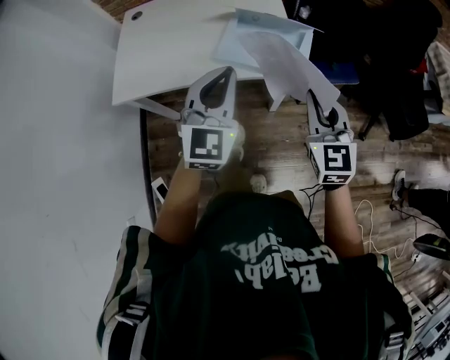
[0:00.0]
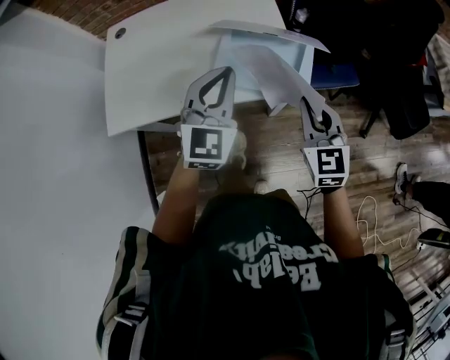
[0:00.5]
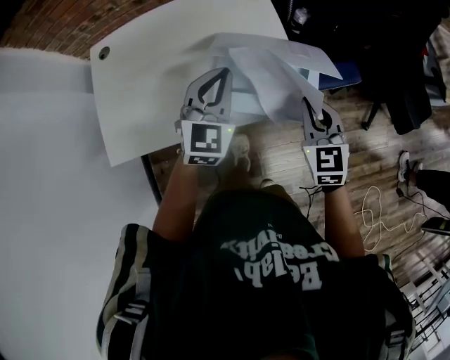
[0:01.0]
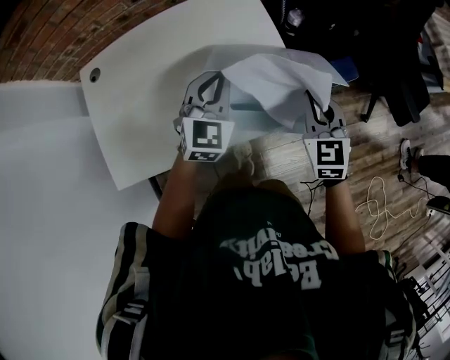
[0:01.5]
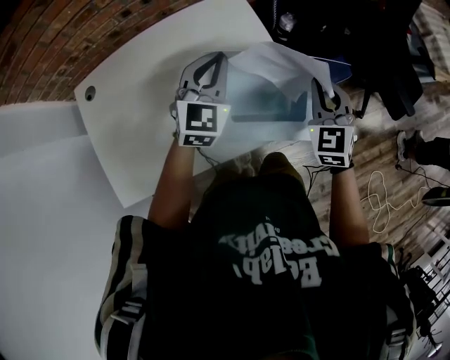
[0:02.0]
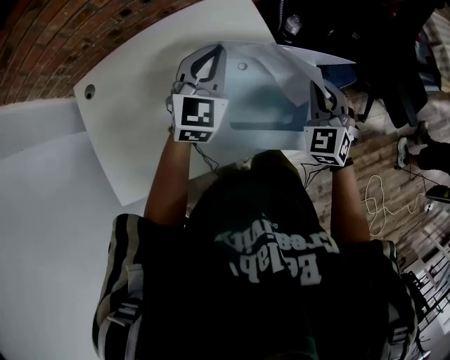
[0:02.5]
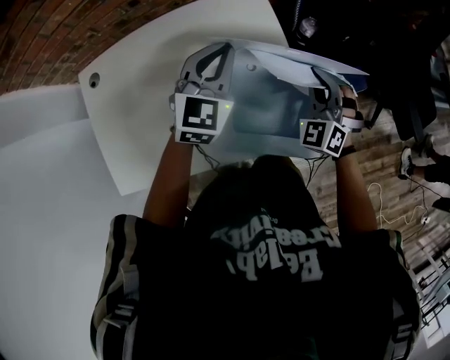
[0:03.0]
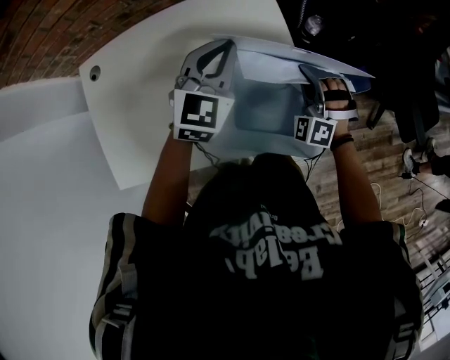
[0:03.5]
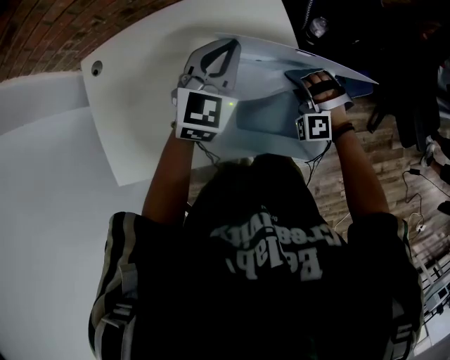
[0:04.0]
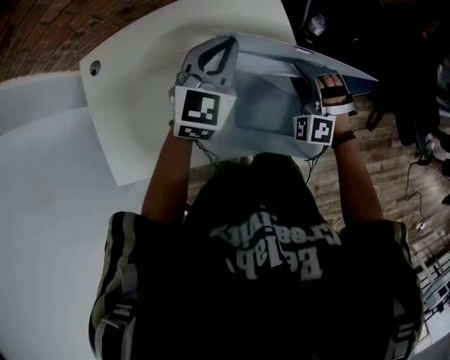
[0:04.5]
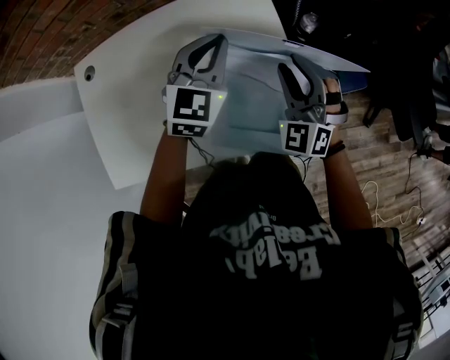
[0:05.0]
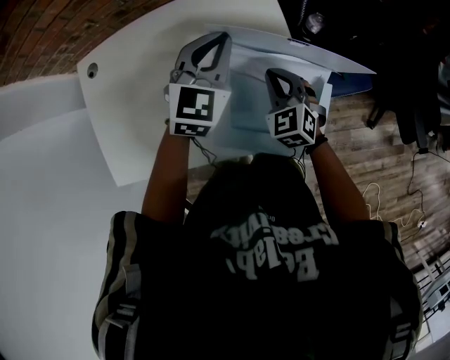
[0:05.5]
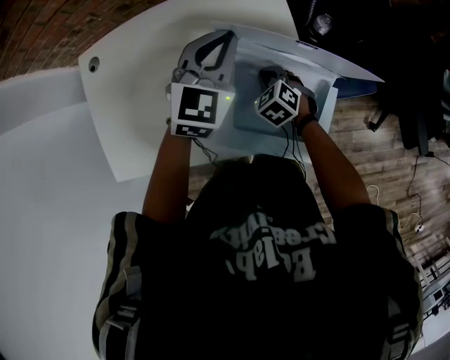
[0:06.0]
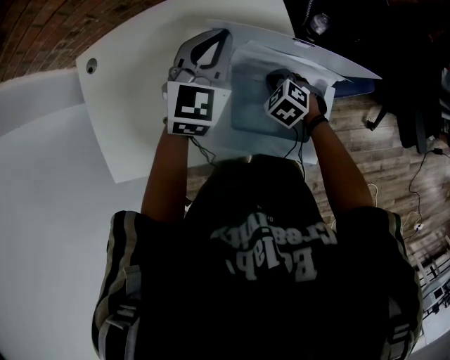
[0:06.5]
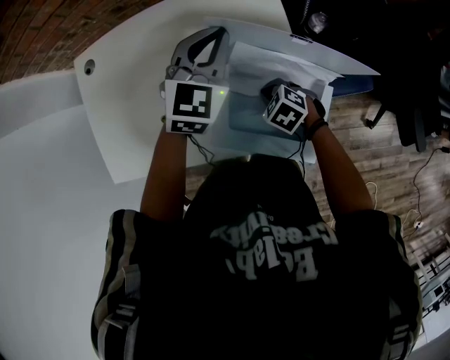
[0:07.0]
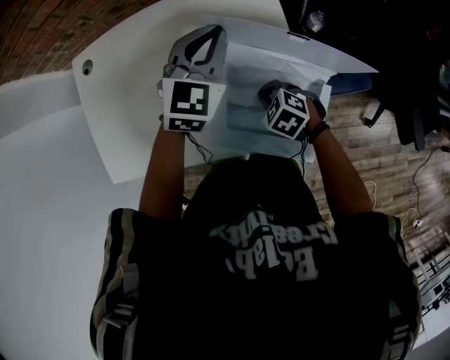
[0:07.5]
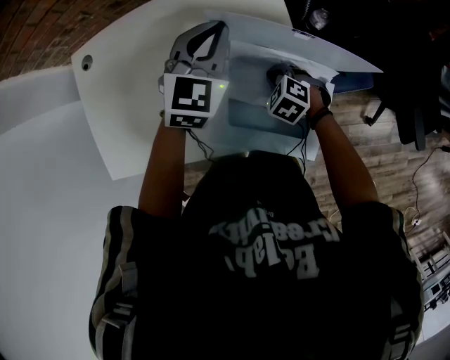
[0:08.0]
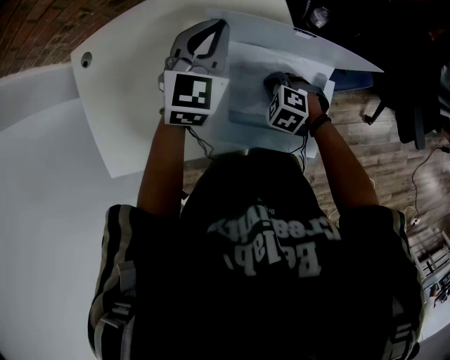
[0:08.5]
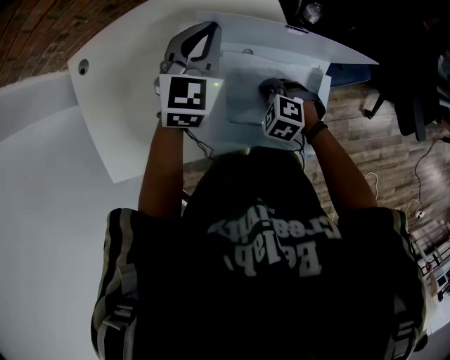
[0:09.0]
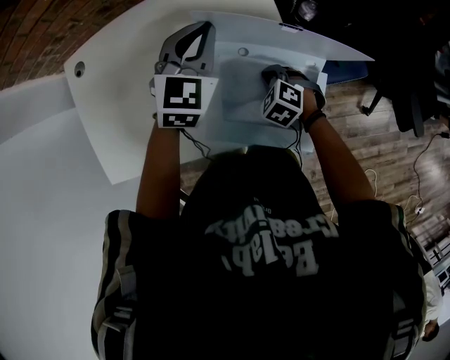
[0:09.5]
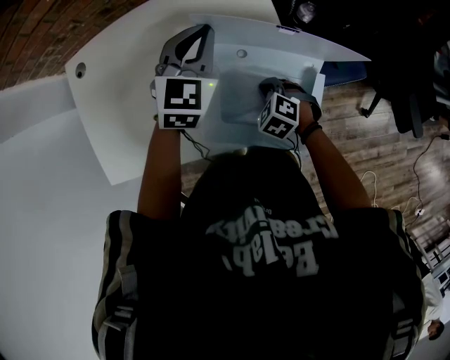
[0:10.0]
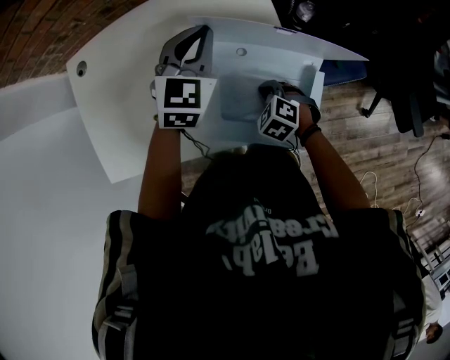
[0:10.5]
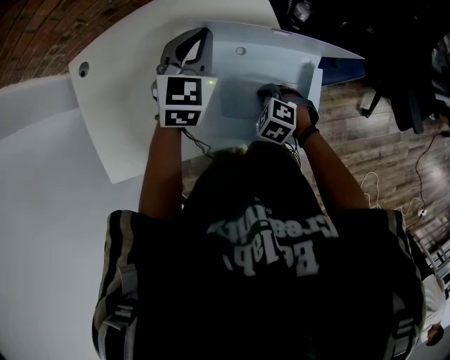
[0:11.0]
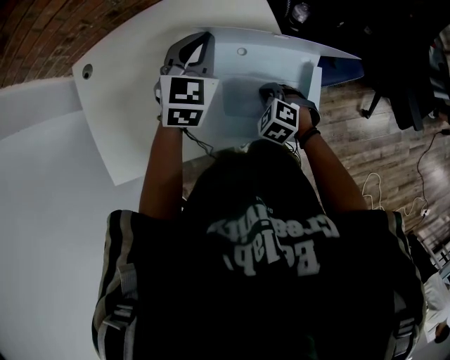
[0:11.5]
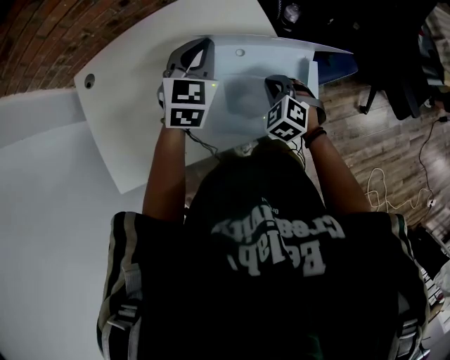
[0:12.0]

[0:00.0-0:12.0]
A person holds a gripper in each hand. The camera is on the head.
0:00.0 to 0:02.0: The two grippers go roughly 30 cm forward. The left gripper turns by roughly 20 degrees. Meanwhile the right gripper swivels roughly 30 degrees.
0:02.0 to 0:04.0: The right gripper is displaced downward and to the left by some 15 cm, and rotates around the line of its fingers by some 60 degrees, counterclockwise from behind.
0:04.0 to 0:06.0: The right gripper travels to the left by roughly 5 cm, travels upward and back again, approximately 15 cm each way, rotates around the line of its fingers by approximately 50 degrees, clockwise from behind, and opens and closes again.
0:10.0 to 0:12.0: The right gripper heads upward, covering roughly 5 cm.

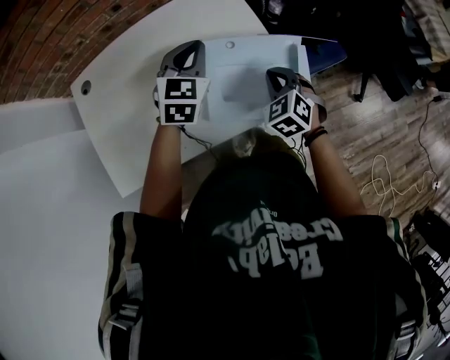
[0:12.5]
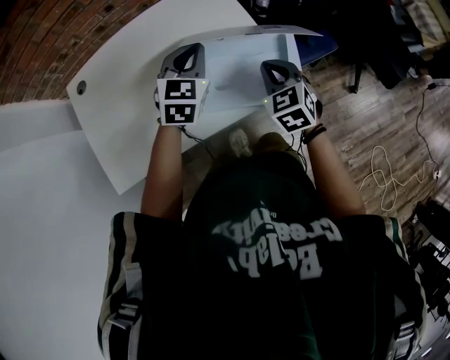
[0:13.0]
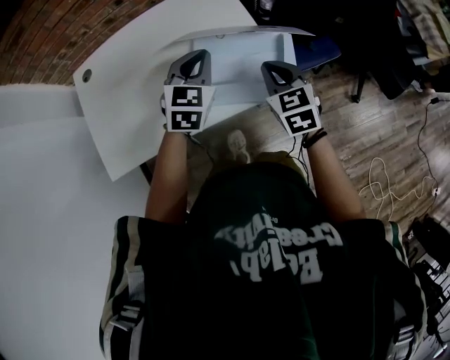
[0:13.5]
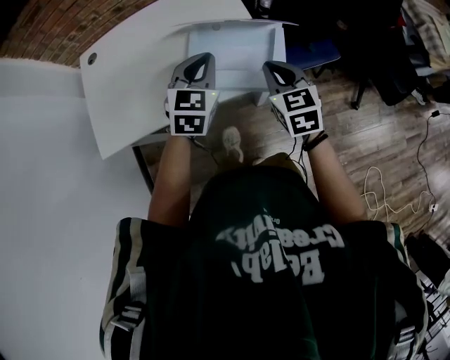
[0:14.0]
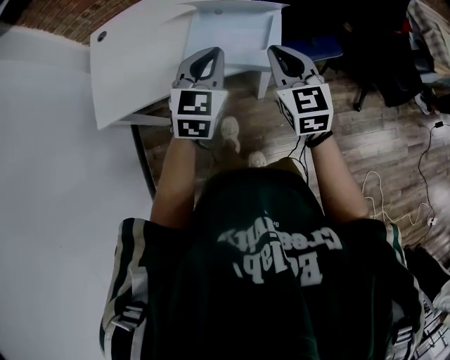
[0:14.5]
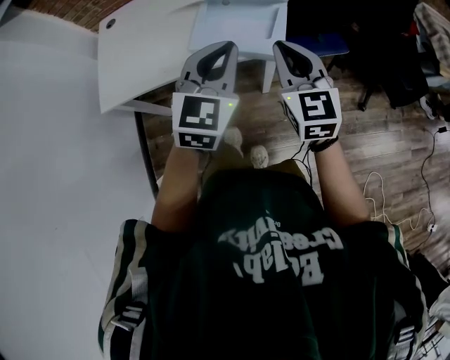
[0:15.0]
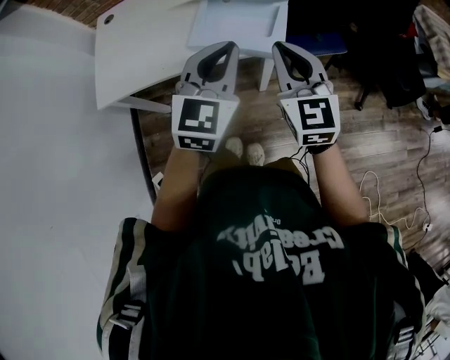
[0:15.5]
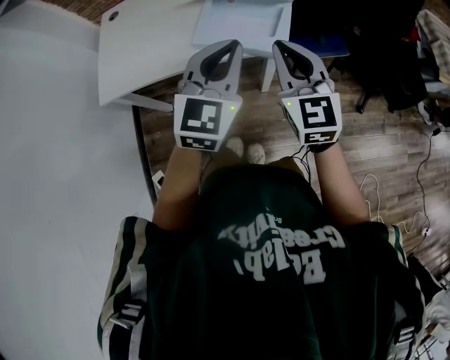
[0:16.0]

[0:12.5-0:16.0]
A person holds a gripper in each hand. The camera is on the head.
0:12.5 to 0:14.5: The left gripper is displaced backward and to the right by approximately 25 cm. The right gripper travels backward, upward and to the right by about 25 cm, and angles its fingers upward, by about 30 degrees.
0:14.5 to 0:16.0: The left gripper goes about 10 cm backward and upward; the right gripper is displaced backward by approximately 5 cm.

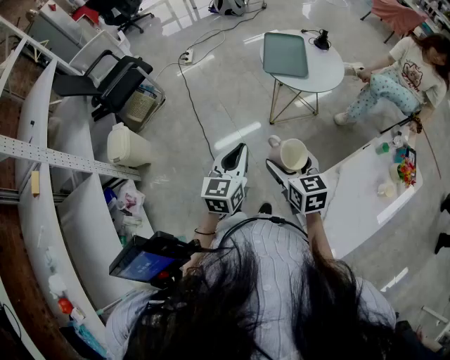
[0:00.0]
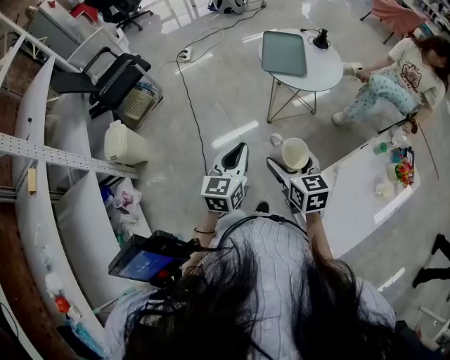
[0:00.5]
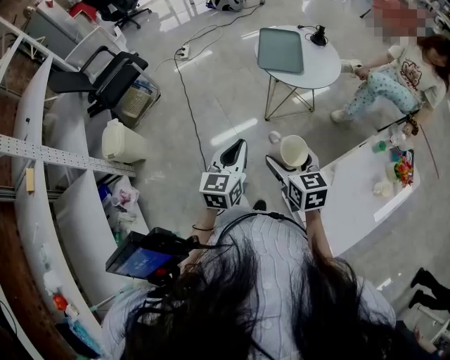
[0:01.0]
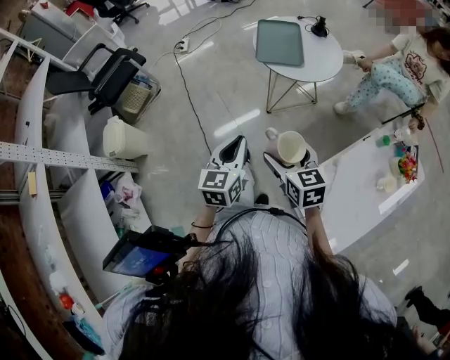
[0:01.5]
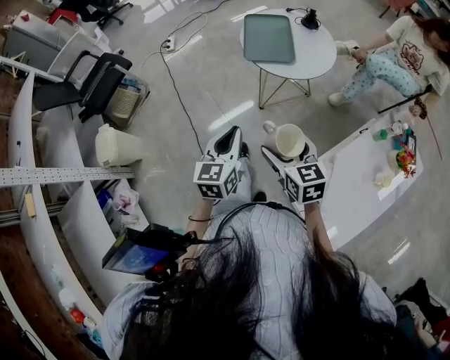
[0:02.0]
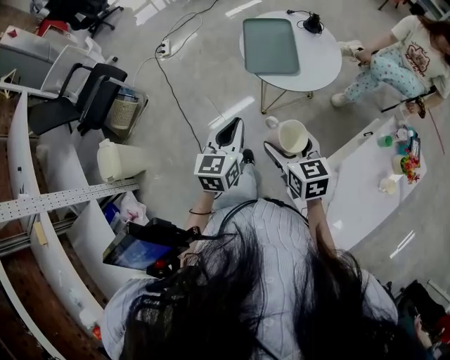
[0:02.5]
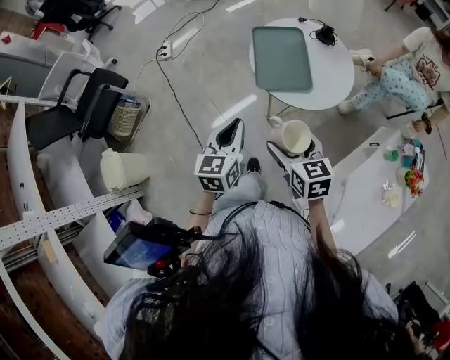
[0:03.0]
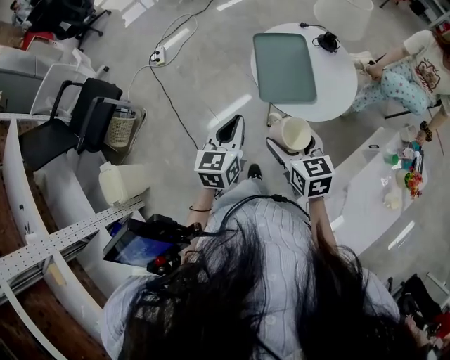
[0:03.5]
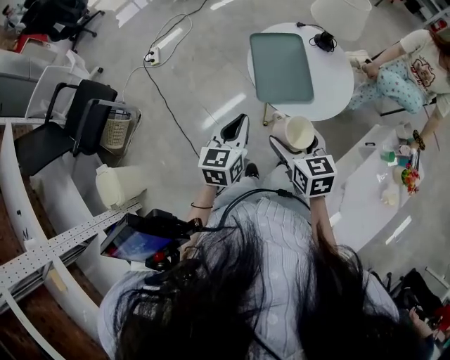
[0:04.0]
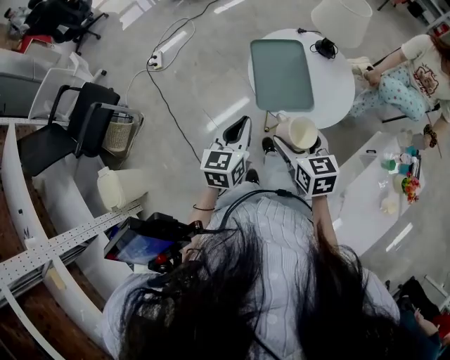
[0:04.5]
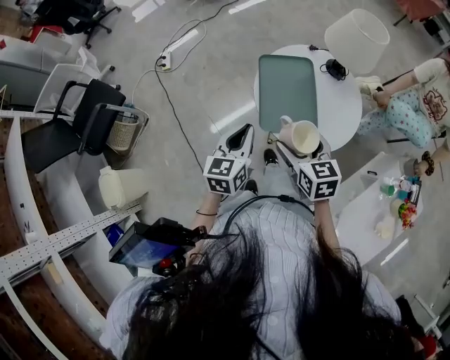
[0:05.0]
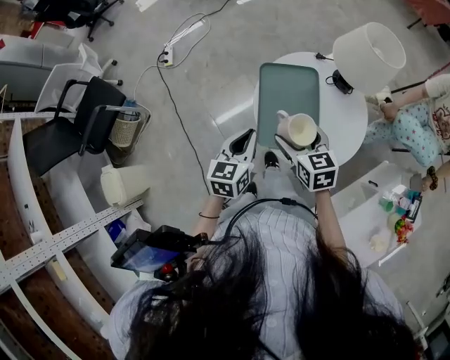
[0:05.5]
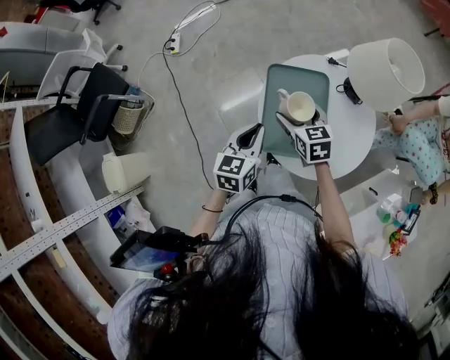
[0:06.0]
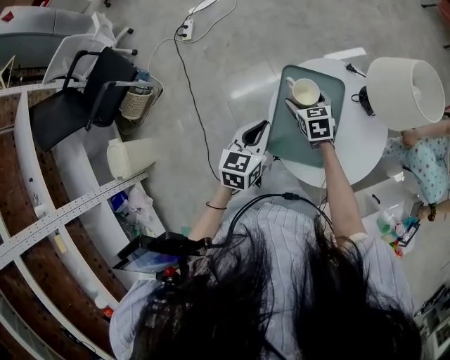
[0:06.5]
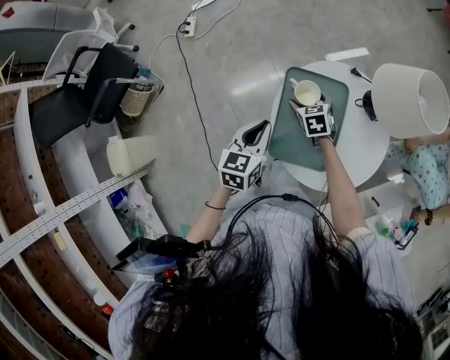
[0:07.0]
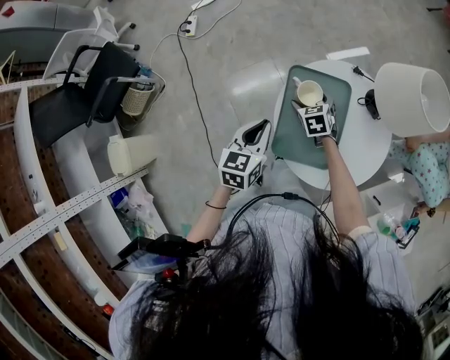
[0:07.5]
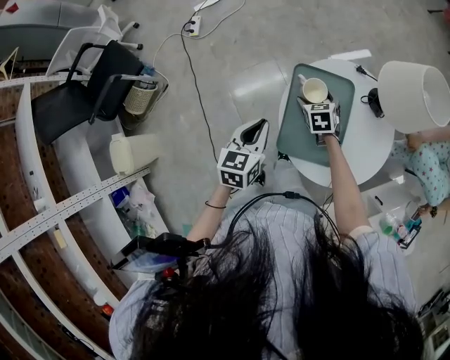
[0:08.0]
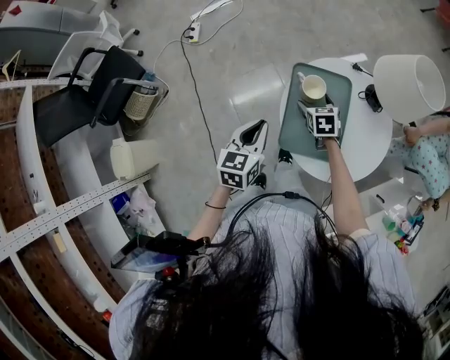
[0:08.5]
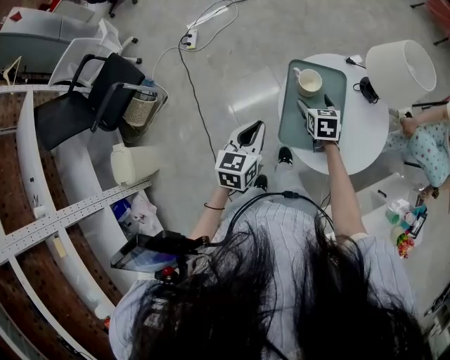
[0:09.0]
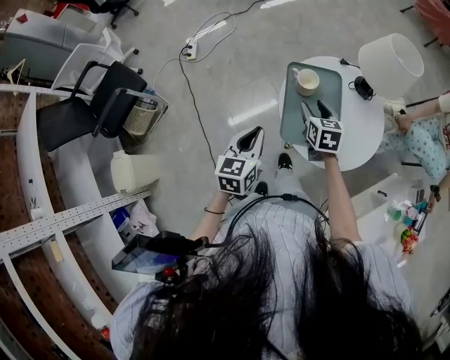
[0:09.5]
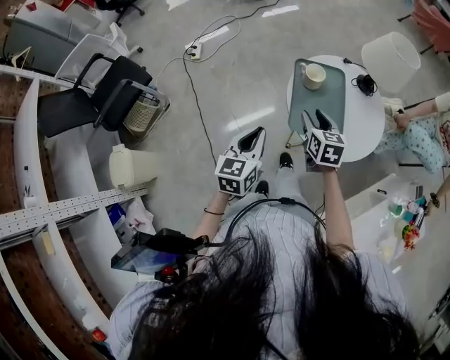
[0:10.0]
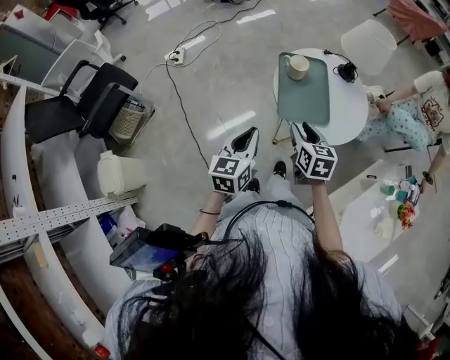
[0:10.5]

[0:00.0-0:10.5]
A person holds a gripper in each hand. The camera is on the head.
0:00.0 to 0:02.0: The grippers both shift forward and to the right by some 10 cm.
0:02.0 to 0:04.0: Both grippers travel together forward, roughly 30 cm.
0:04.0 to 0:06.5: The right gripper heads forward and downward, covering approximately 40 cm, and swivels about 20 degrees, while the left gripper shifts approximately 20 cm forward.
0:06.5 to 0:08.5: The left gripper changes place by approximately 5 cm.
0:08.5 to 0:10.5: The right gripper moves backward and upward, roughly 30 cm, swivels about 30 degrees, and closes its fingers; the left gripper goes some 20 cm backward.

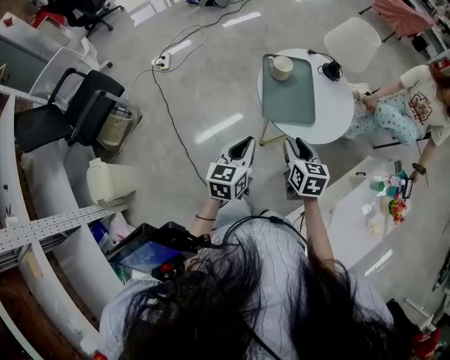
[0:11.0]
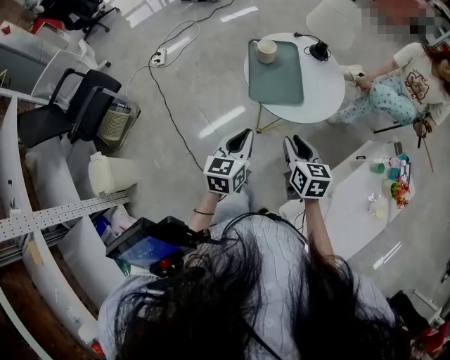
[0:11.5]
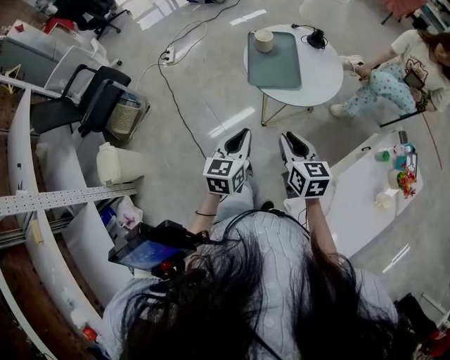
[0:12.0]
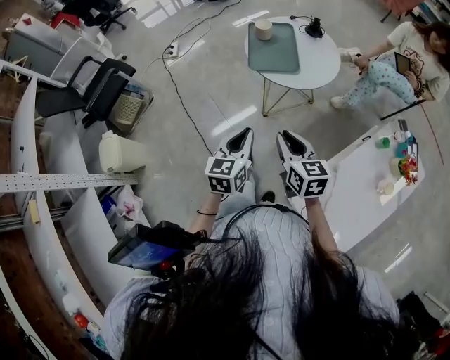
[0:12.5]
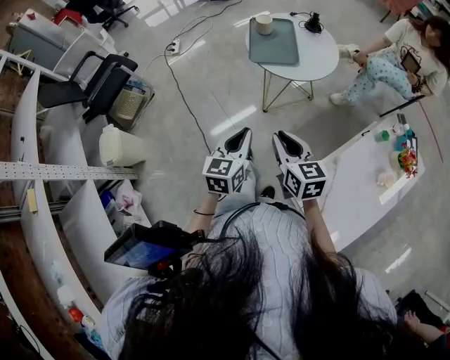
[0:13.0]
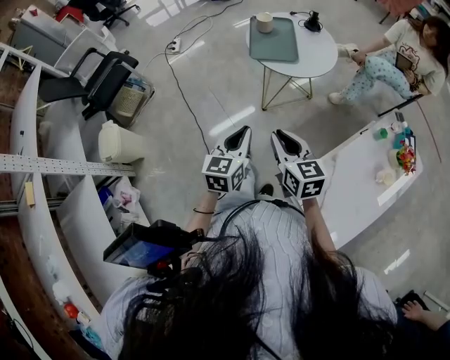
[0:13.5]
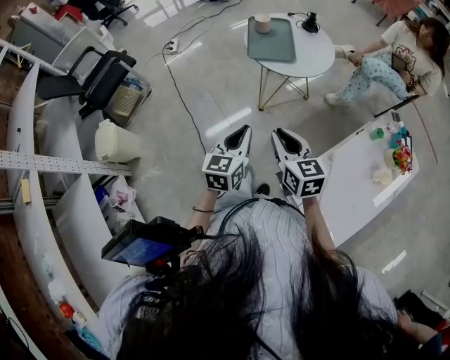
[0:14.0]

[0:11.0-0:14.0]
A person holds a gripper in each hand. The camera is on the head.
0:11.0 to 0:12.5: The two grippers go approximately 25 cm backward.
0:12.5 to 0:14.0: The two grippers go some 10 cm backward.
